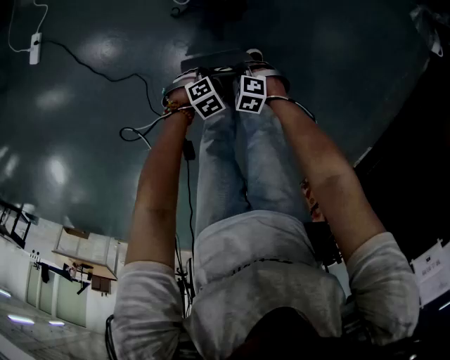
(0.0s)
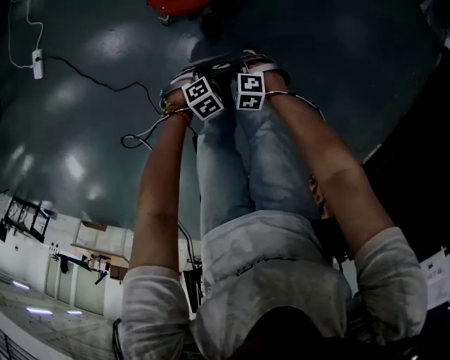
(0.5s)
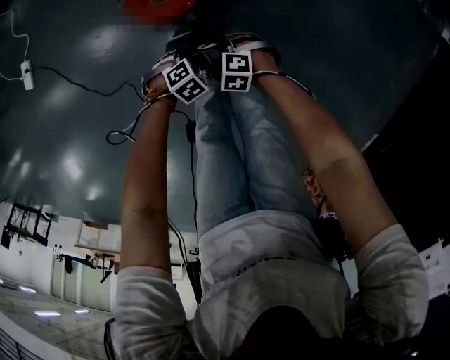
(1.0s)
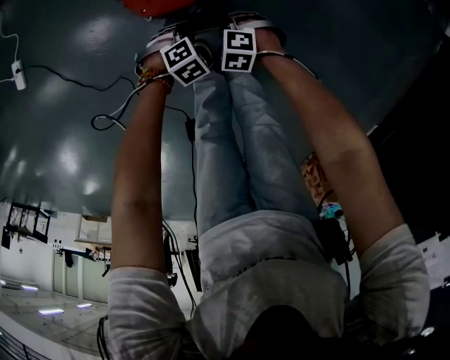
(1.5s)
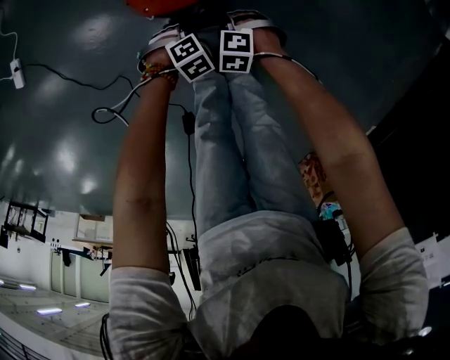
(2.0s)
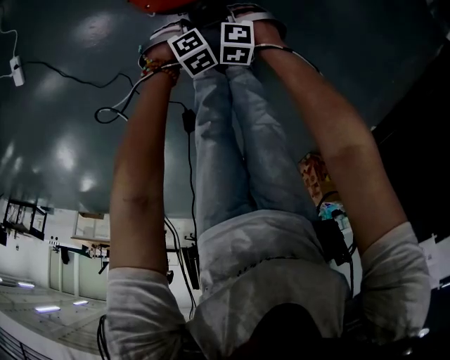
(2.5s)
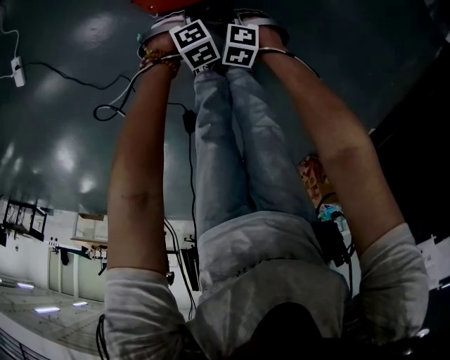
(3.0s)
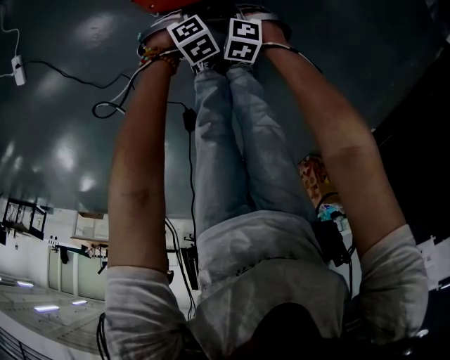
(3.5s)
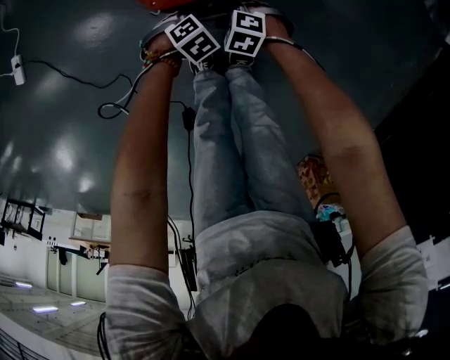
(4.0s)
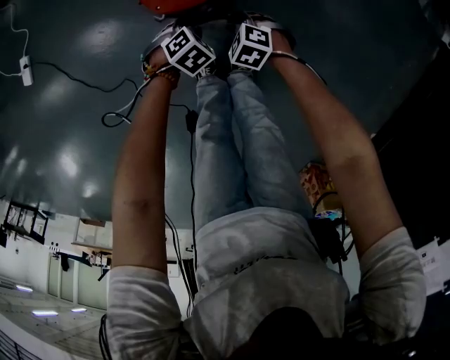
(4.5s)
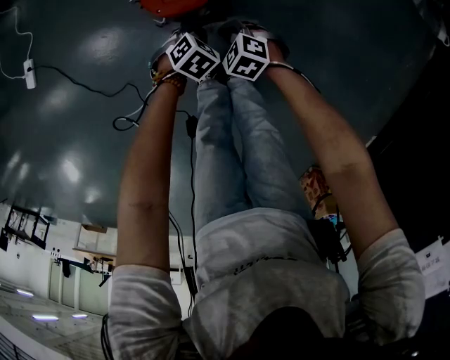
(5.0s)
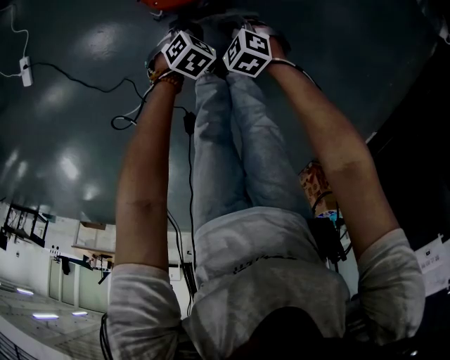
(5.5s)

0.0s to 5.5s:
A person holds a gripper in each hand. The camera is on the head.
0.0s to 2.0s: The right gripper ends up about 25 cm from where it was.
3.5s to 5.5s: The right gripper moves upward, approximately 10 cm.

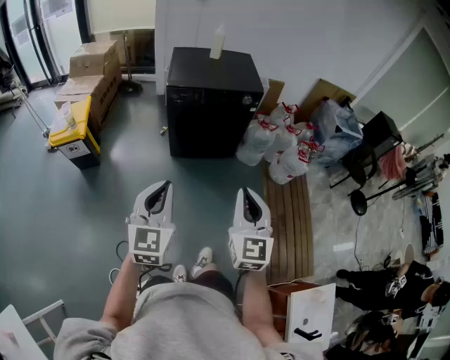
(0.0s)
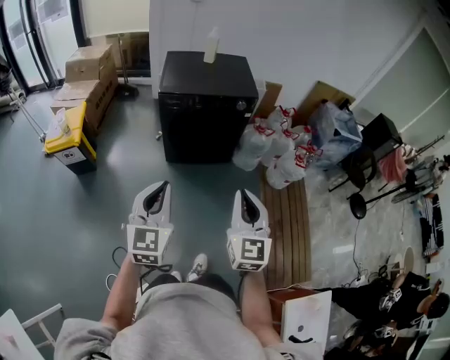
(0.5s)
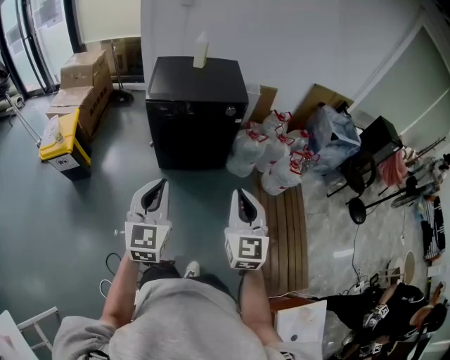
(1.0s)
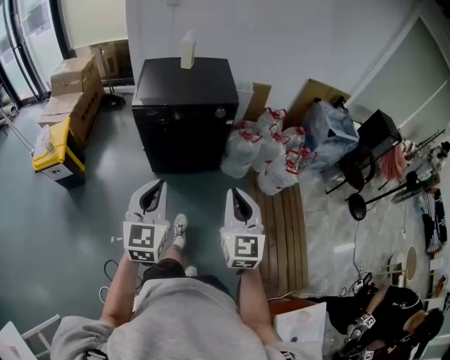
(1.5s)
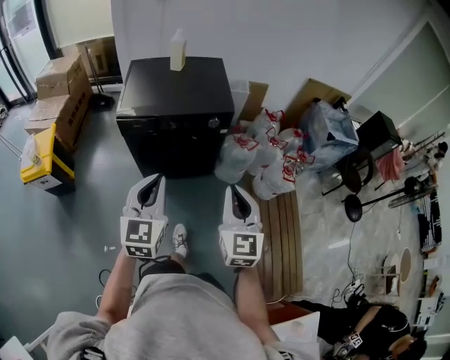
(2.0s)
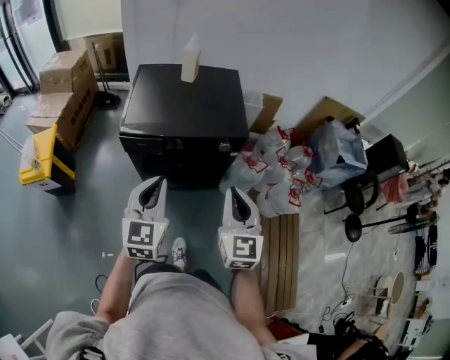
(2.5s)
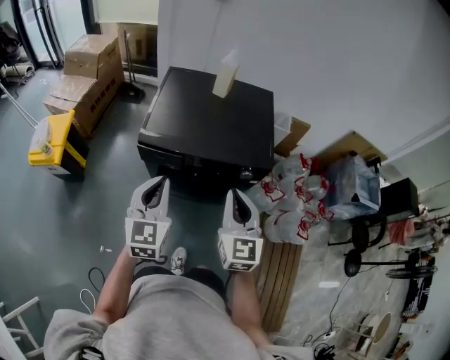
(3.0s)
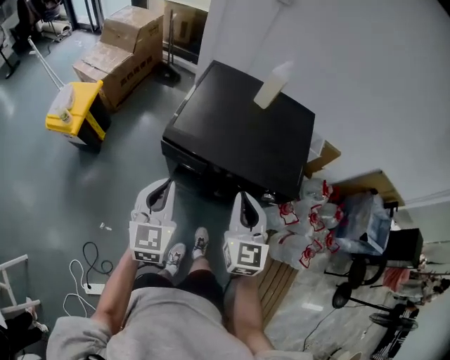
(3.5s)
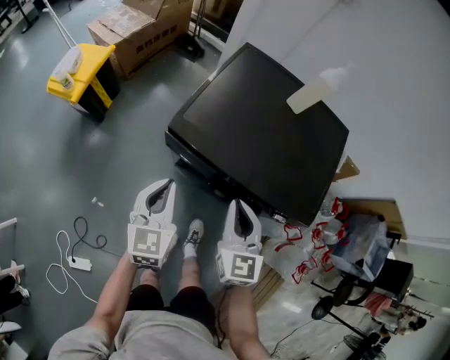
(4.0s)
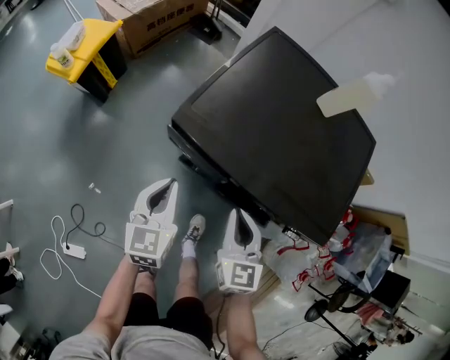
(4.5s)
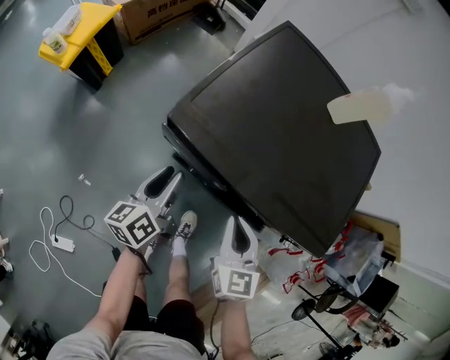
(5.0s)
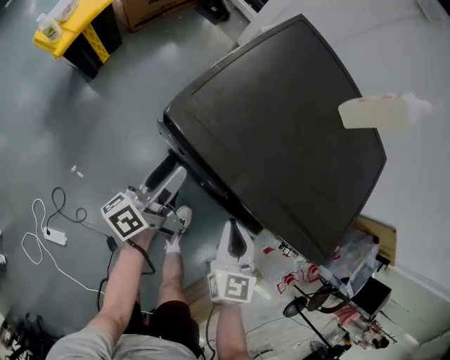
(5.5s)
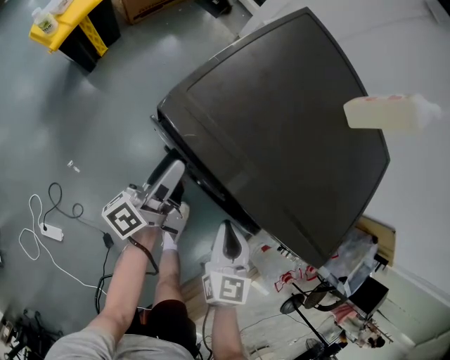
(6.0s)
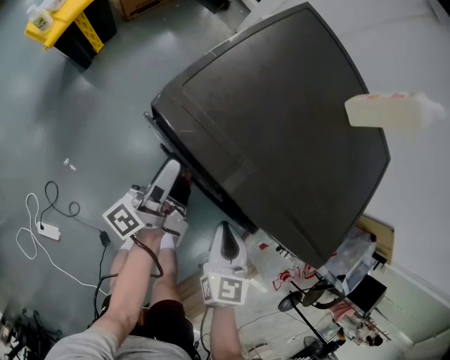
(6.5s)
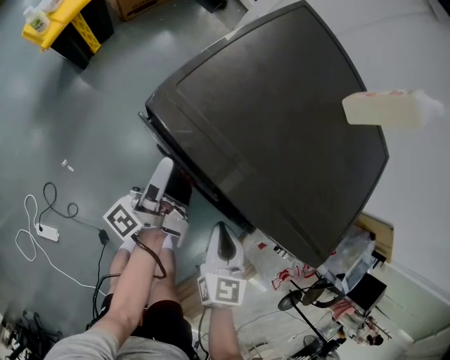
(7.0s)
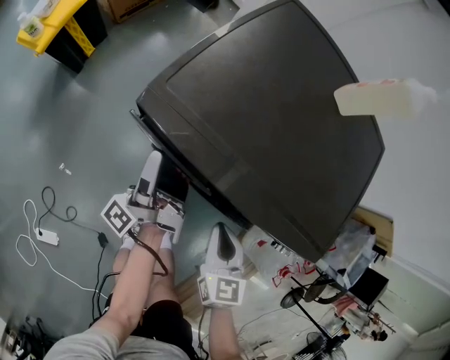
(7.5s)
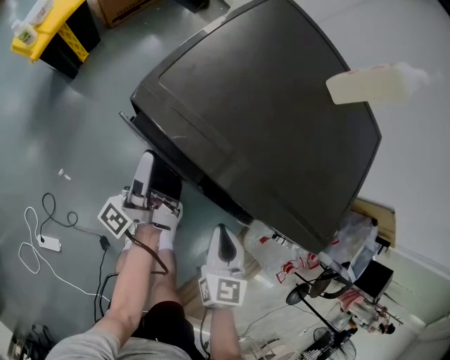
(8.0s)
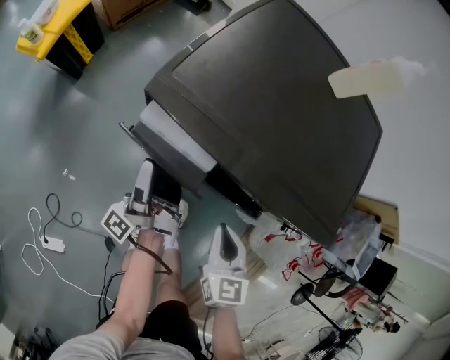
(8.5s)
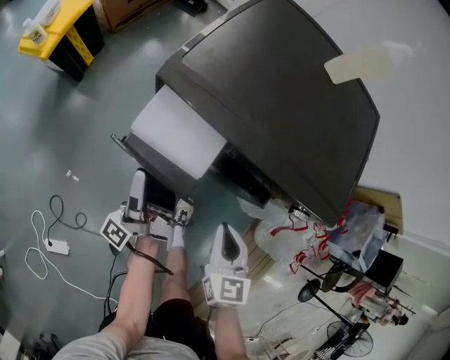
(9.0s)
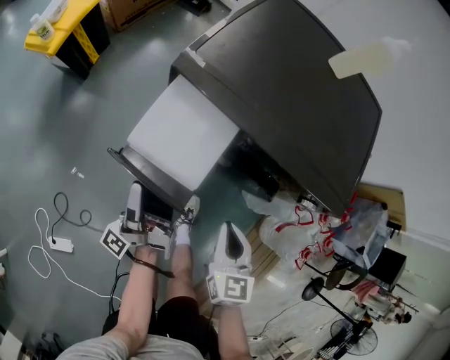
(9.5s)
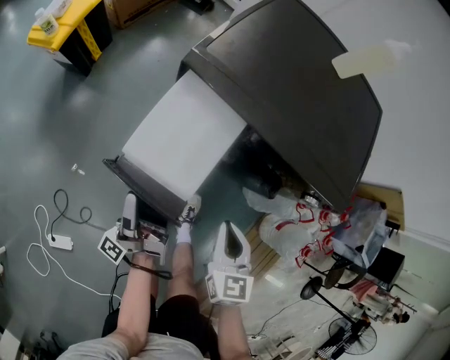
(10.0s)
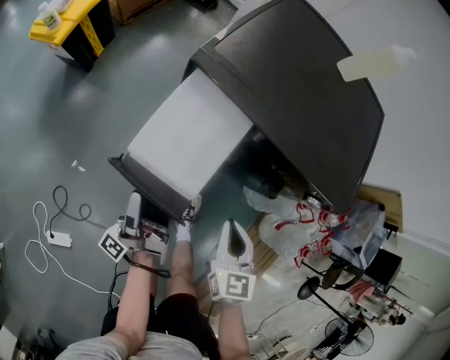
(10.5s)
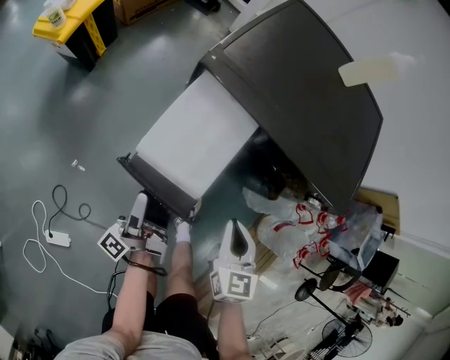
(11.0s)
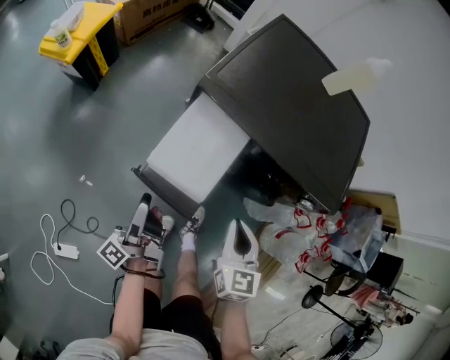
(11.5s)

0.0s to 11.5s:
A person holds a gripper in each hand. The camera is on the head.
0.0s to 2.0s: Both grippers move forward and to the right, roughly 30 cm.
2.0s to 4.0s: The left gripper shifts by approximately 35 cm, and rotates about 40 degrees. Meanwhile the right gripper ends up some 40 cm from where it was, and turns by some 30 degrees.
4.0s to 6.0s: The left gripper moves downward and forward, some 20 cm, rotates around the line of its fingers by approximately 80 degrees, counterclockwise from behind, and opens; the right gripper goes roughly 20 cm downward.
6.0s to 7.5s: The left gripper swivels about 30 degrees.
7.5s to 9.5s: The left gripper shifts about 20 cm backward and to the left. The right gripper is displaced backward by roughly 10 cm.
9.5s to 11.5s: The left gripper heads backward and to the left, covering some 10 cm; the right gripper ends up some 5 cm from where it was.

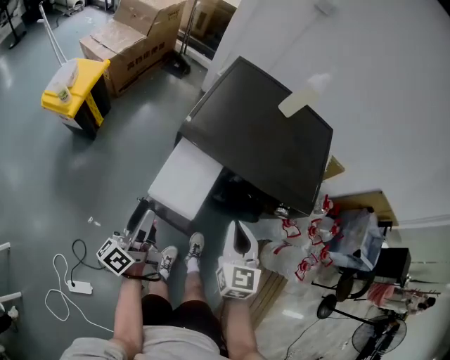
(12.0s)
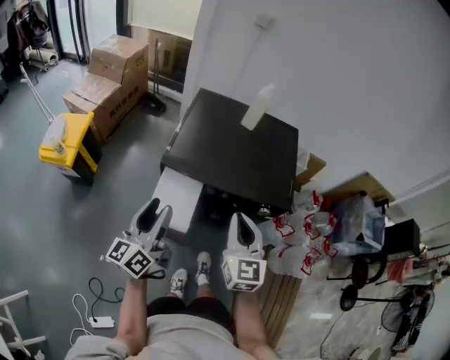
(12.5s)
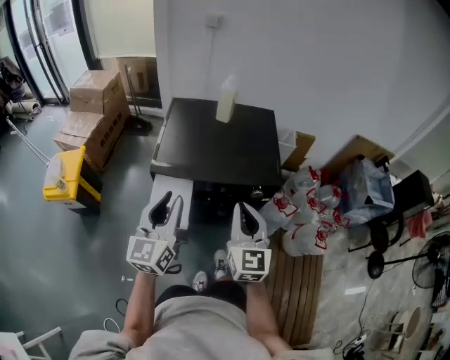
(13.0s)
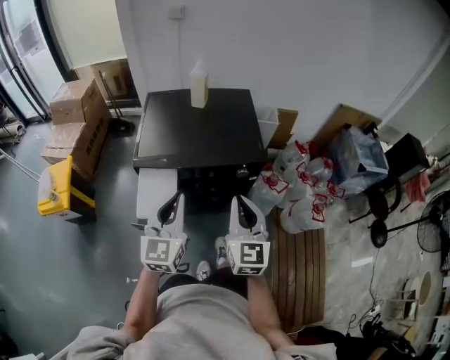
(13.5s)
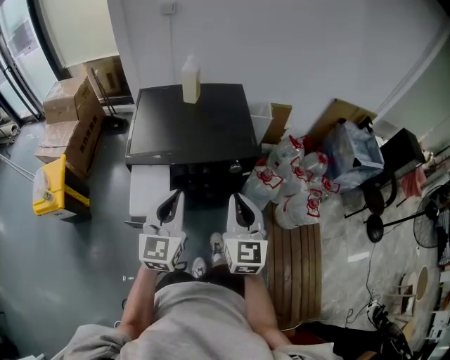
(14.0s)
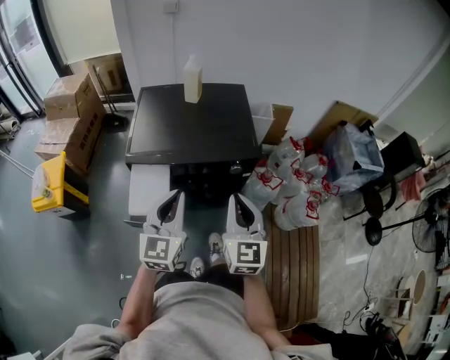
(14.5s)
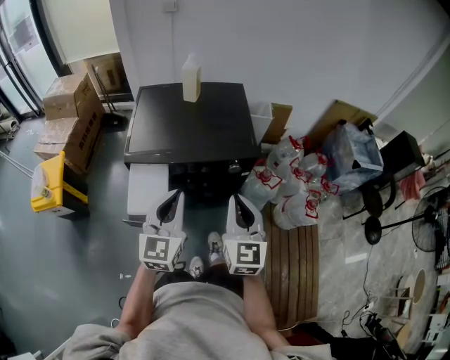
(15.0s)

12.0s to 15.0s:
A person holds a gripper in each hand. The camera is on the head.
12.0s to 13.5s: The left gripper moves to the right and upward, roughly 30 cm, rolls clockwise, seen from behind, by approximately 60 degrees, and closes; the right gripper moves upward, to the right and backward, some 20 cm, and changes its angle by about 20 degrees.
13.5s to 15.0s: The grippers stay close to where they were, moving slightly.

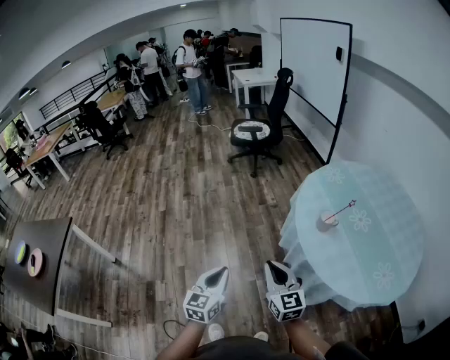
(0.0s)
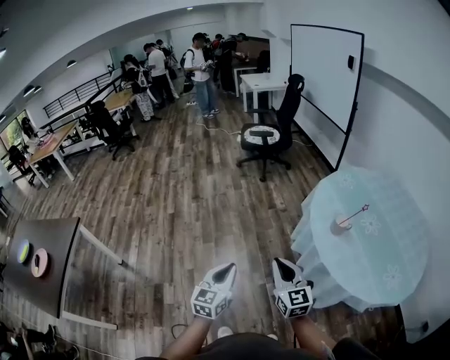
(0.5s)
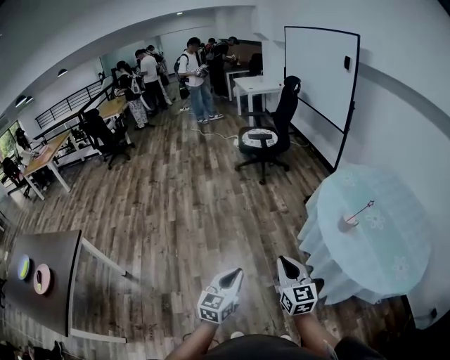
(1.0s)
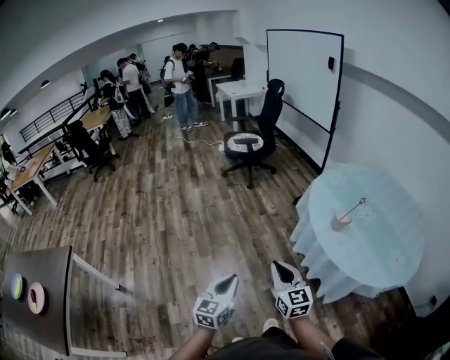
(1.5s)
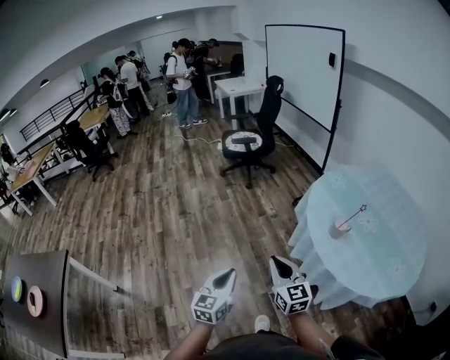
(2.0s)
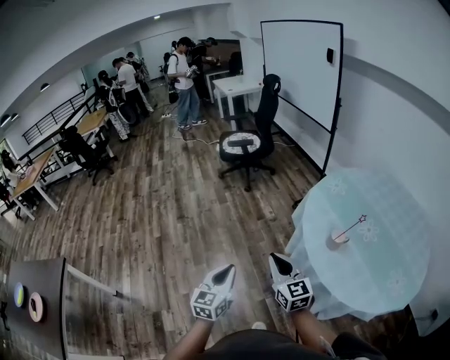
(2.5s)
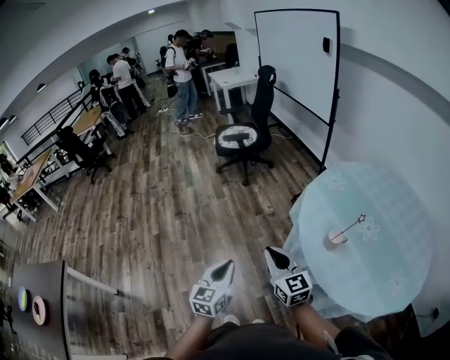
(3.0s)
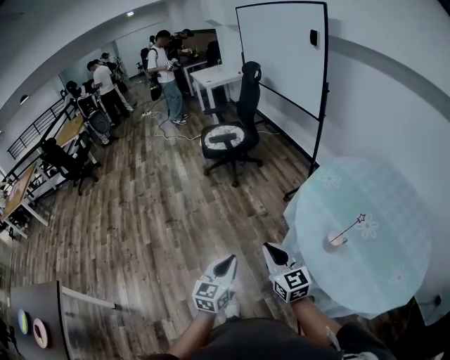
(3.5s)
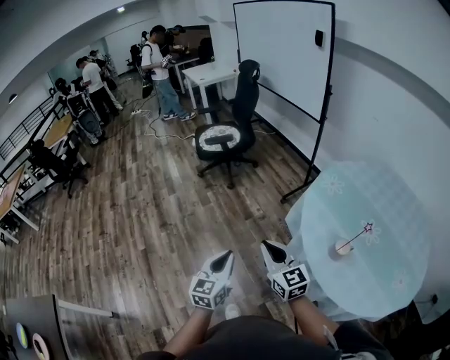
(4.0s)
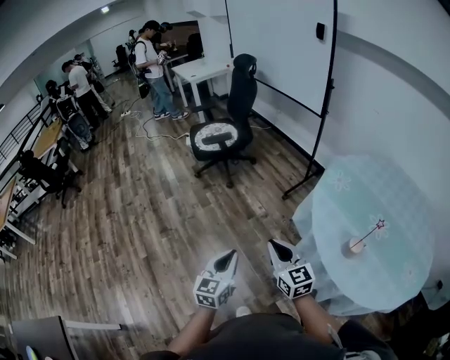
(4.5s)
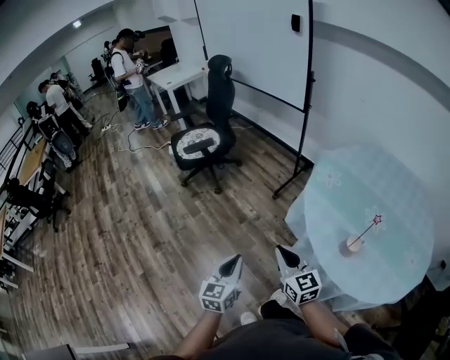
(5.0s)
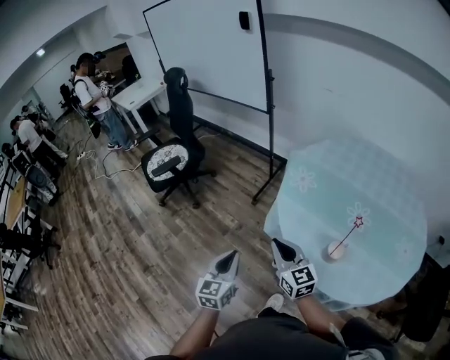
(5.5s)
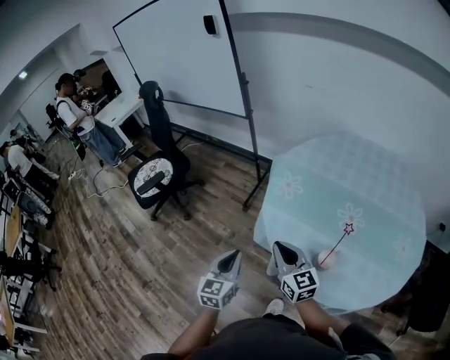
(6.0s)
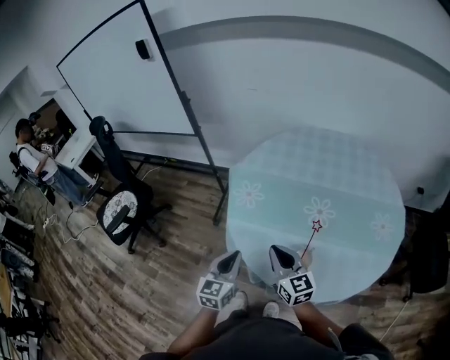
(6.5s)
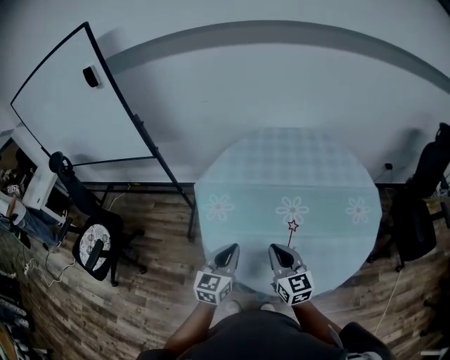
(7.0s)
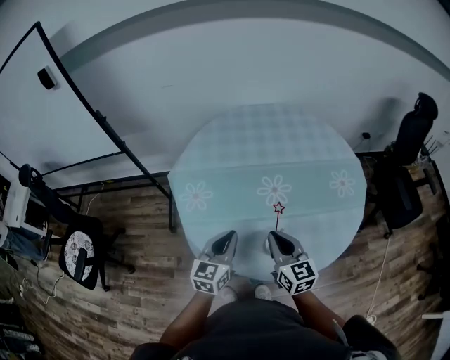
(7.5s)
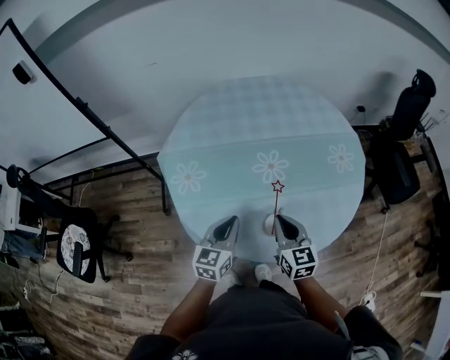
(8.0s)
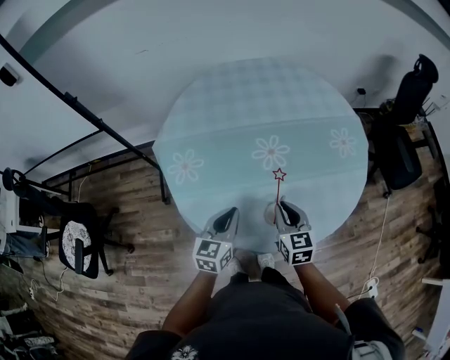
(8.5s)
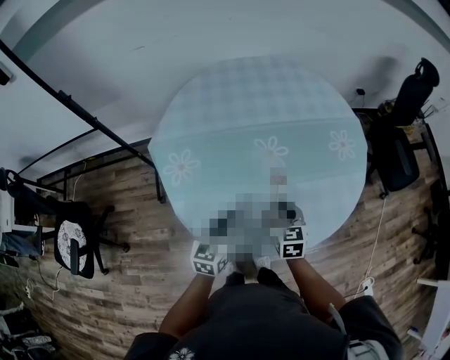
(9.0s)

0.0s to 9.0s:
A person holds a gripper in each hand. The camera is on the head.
0.0s to 2.0s: Both grippers move to the left and forward, some 15 cm.
2.0s to 4.5s: The grippers both shift forward by roughly 35 cm.
4.5s to 7.0s: Both grippers are carried some 50 cm. The left gripper rotates roughly 60 degrees. The right gripper rotates roughly 60 degrees.
7.0s to 9.0s: The left gripper heads downward, covering about 10 cm, while the right gripper heads downward, to the right and forward, covering about 15 cm, and changes its angle by some 40 degrees.
